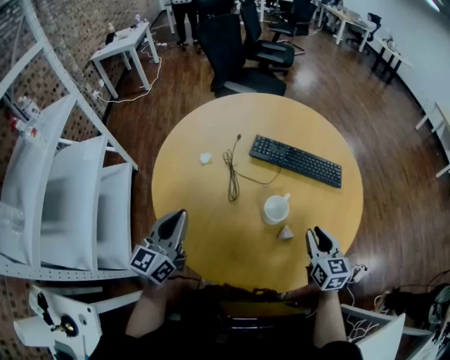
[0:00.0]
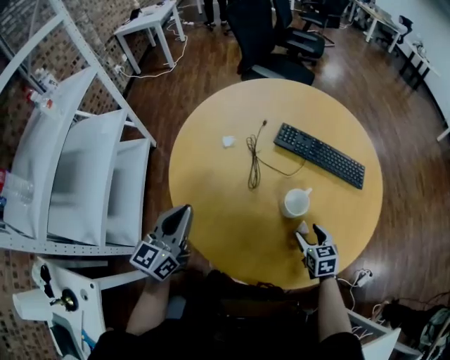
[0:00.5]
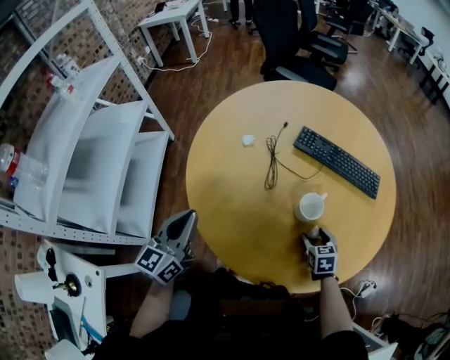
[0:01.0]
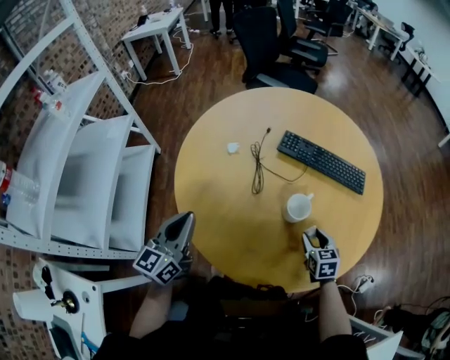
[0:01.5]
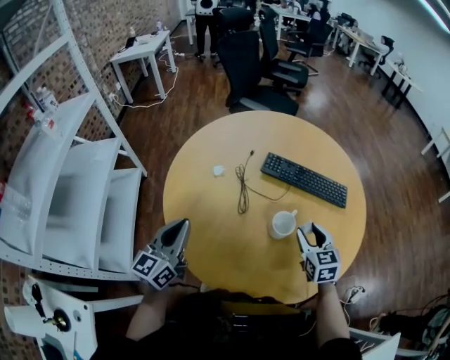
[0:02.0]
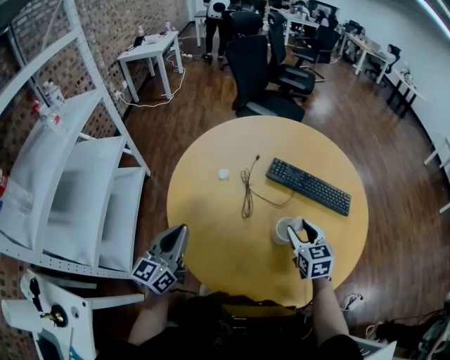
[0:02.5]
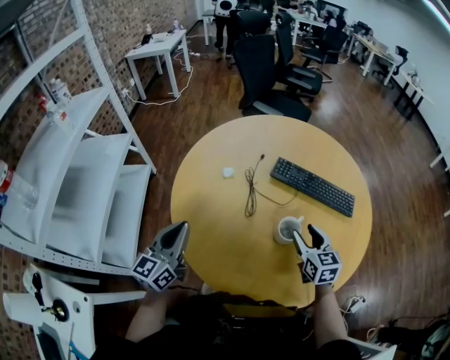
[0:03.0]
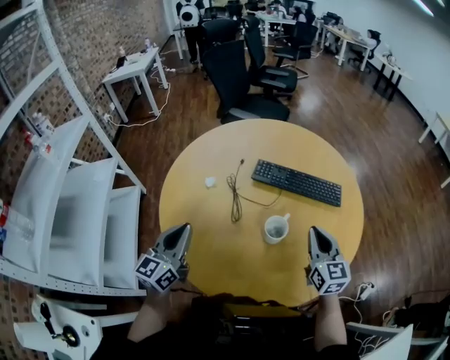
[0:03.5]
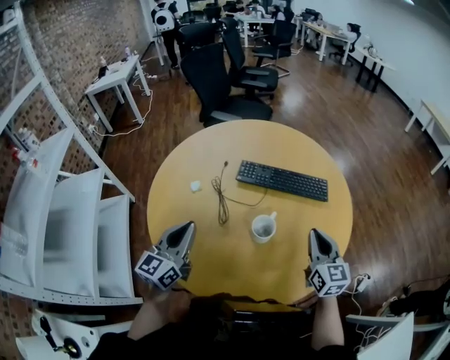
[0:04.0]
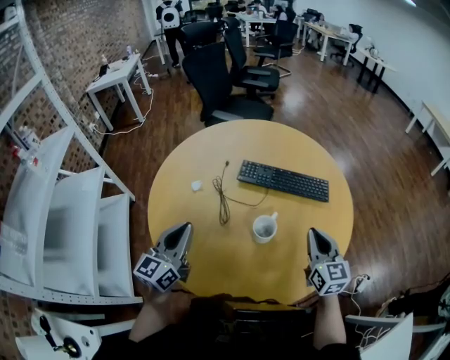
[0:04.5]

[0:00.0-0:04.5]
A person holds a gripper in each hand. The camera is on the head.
0:00.0 to 0:02.0: The right gripper is displaced forward by approximately 5 cm, and reaches about 15 cm downward, then returns.
0:02.0 to 0:04.5: The right gripper shifts approximately 10 cm to the right and upward, and closes its fingers, while the left gripper moves to the right, some 5 cm.

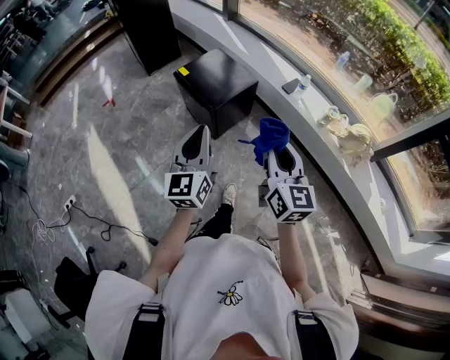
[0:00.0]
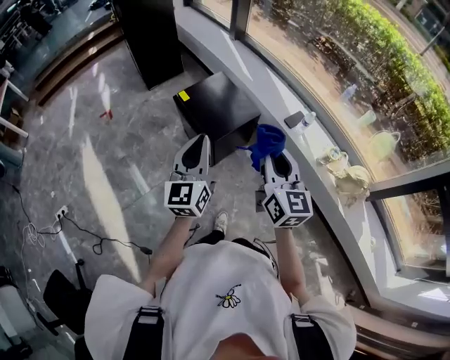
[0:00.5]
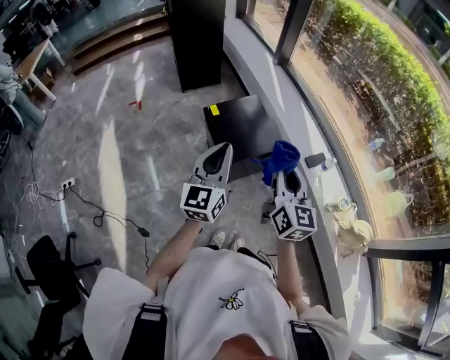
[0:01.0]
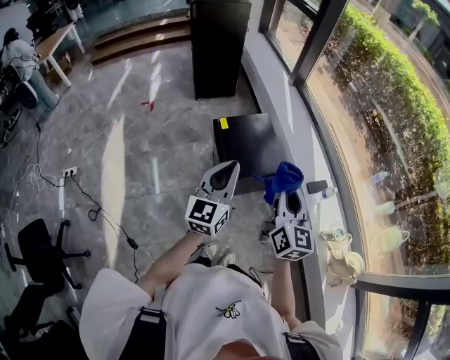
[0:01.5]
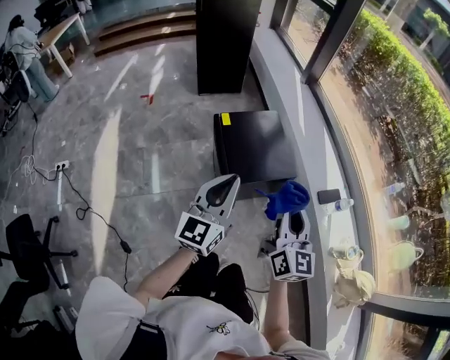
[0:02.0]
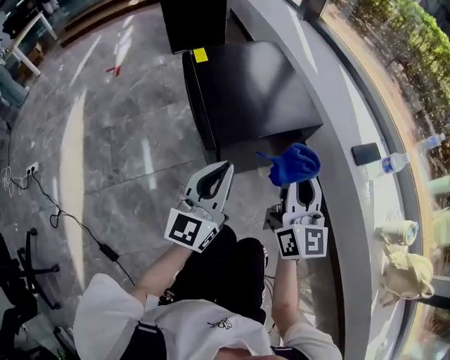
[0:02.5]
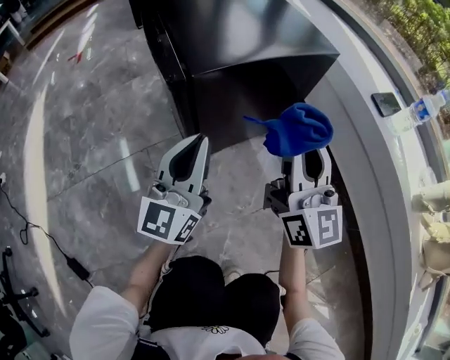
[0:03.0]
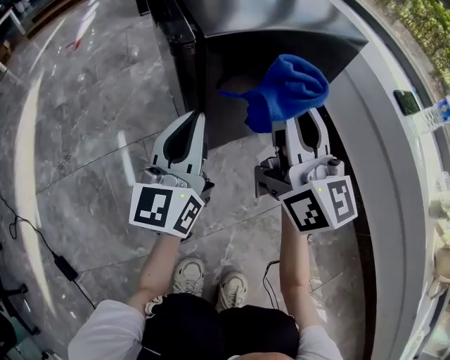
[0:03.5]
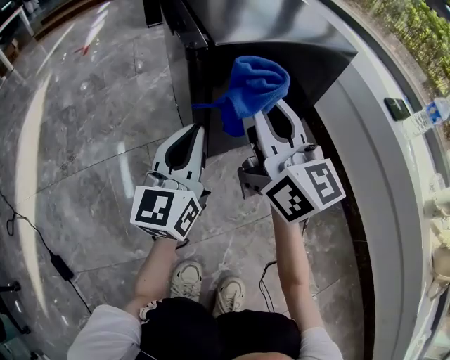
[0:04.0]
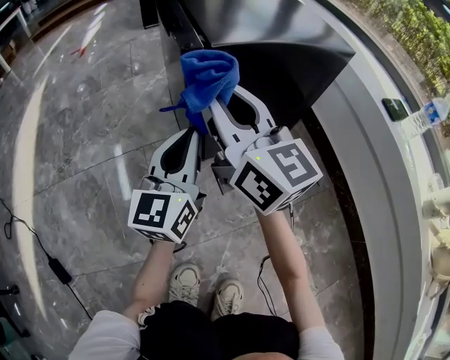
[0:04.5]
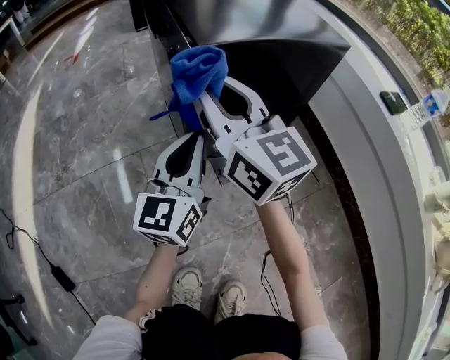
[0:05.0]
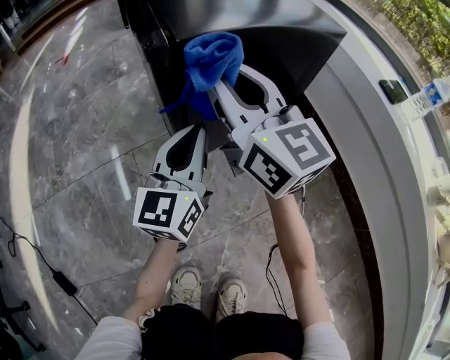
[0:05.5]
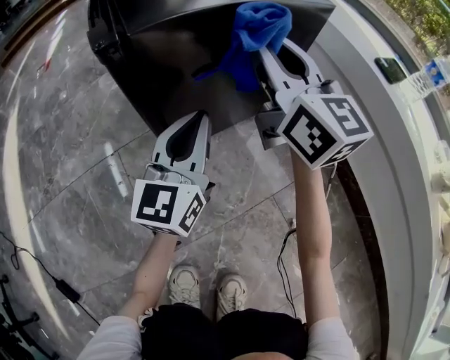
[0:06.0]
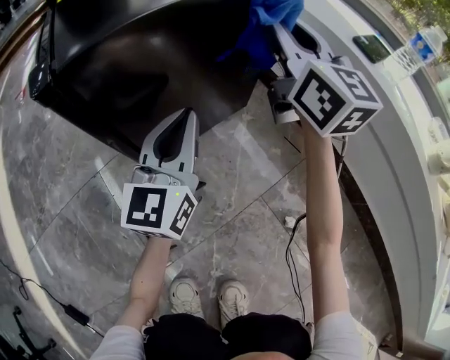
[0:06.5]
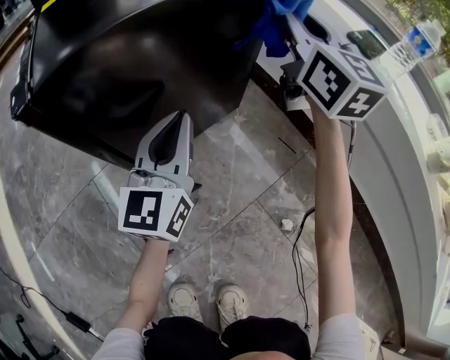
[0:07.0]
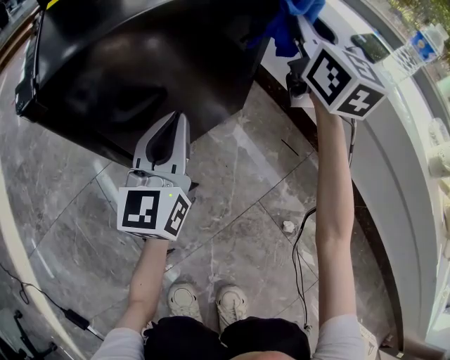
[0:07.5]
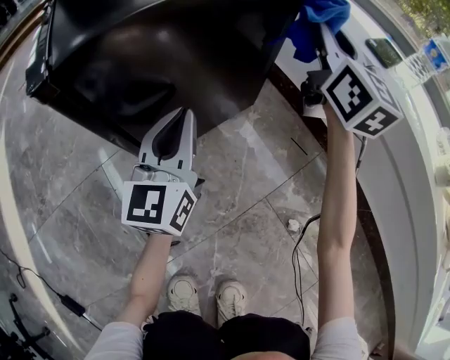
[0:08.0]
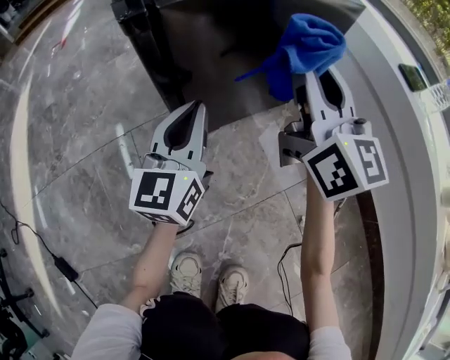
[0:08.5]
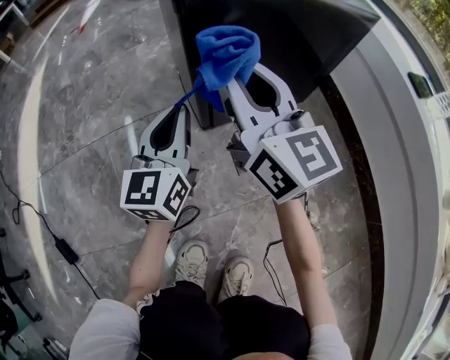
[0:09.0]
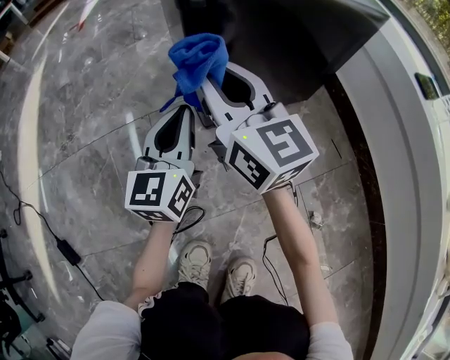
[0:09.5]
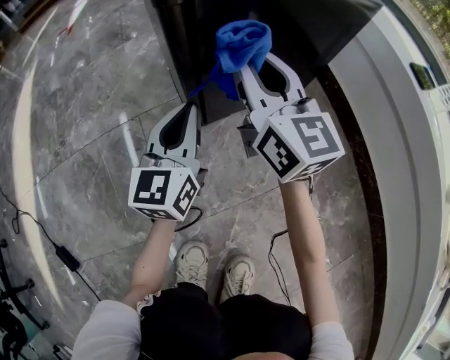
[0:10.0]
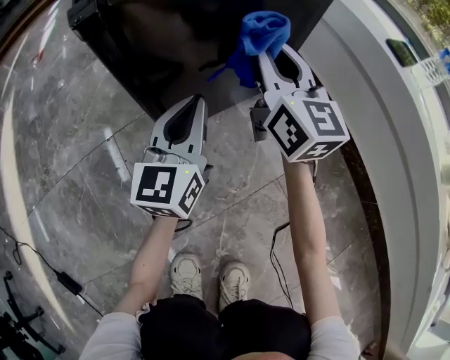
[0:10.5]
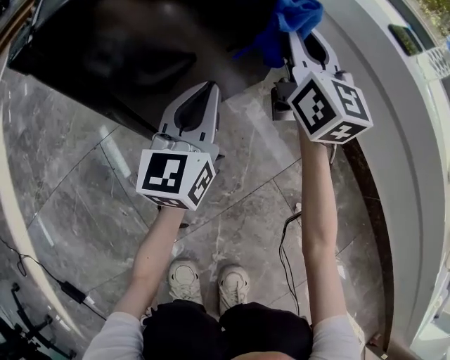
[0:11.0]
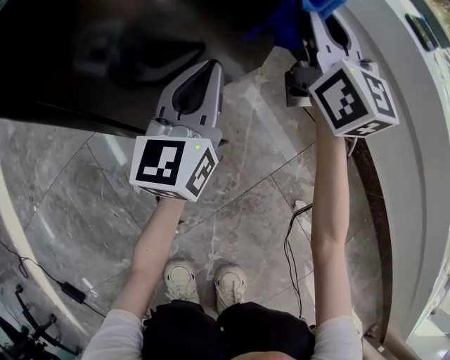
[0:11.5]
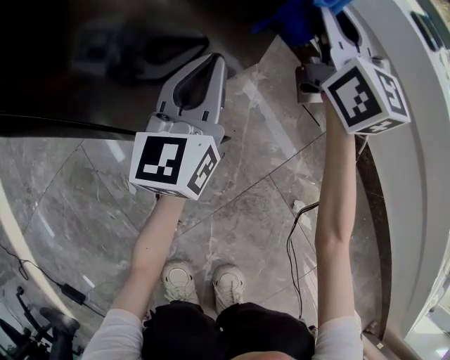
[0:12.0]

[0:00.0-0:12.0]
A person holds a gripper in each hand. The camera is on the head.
0:00.0 to 0:02.0: The left gripper is displaced forward and downward by roughly 25 cm. Meanwhile the right gripper goes about 30 cm forward.
0:02.0 to 0:04.0: Both grippers move downward, some 50 cm. The right gripper changes its angle by about 20 degrees.
0:04.0 to 0:06.0: The right gripper moves to the right and forward, approximately 15 cm. Meanwhile the left gripper is displaced to the right by roughly 10 cm.
0:06.0 to 0:08.0: The left gripper changes place by about 5 cm. The right gripper shifts roughly 20 cm to the right and forward, and swivels about 20 degrees.
0:08.0 to 0:10.0: The left gripper changes place by approximately 15 cm. Meanwhile the right gripper changes place by some 30 cm, and turns by roughly 30 degrees.
0:10.0 to 0:12.0: The grippers both shift to the right and forward by roughly 25 cm. The right gripper changes its angle by roughly 20 degrees.

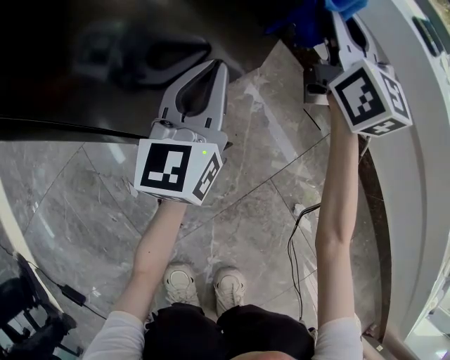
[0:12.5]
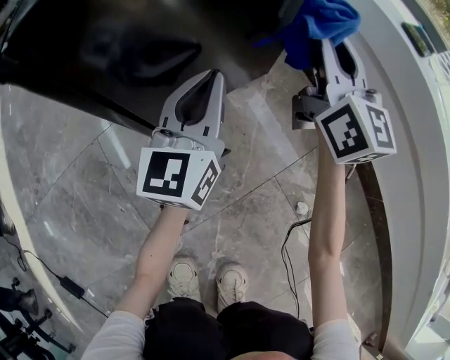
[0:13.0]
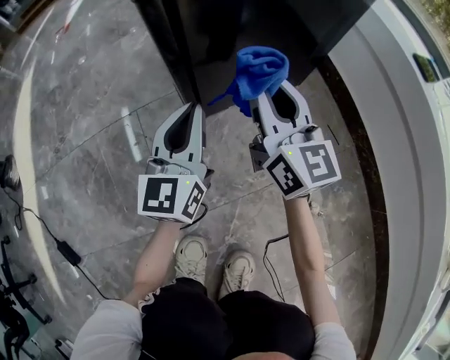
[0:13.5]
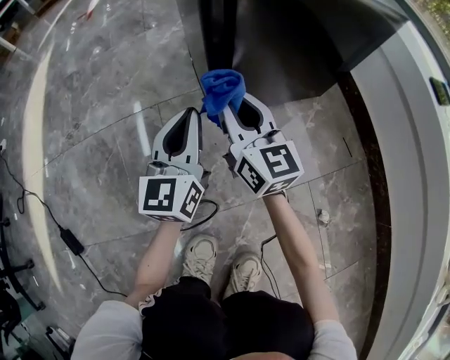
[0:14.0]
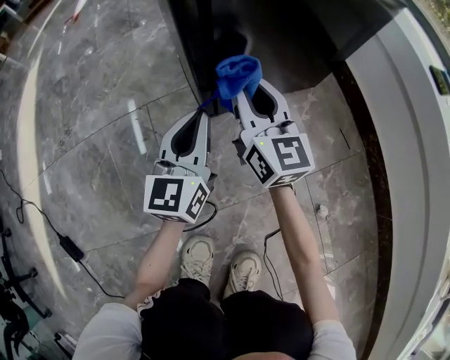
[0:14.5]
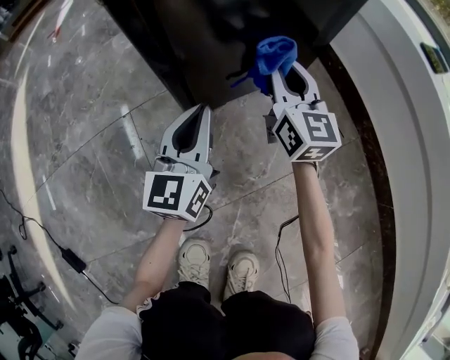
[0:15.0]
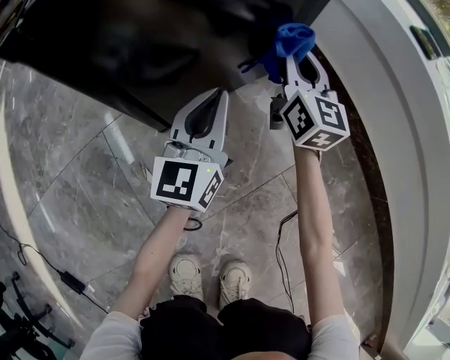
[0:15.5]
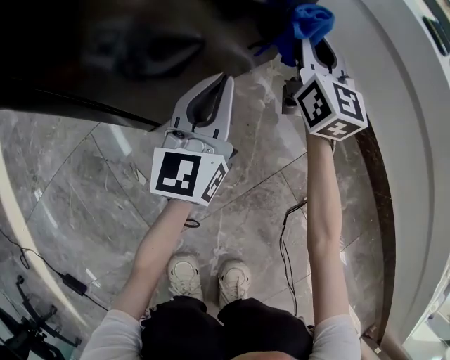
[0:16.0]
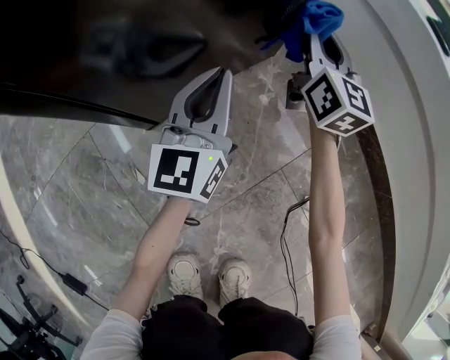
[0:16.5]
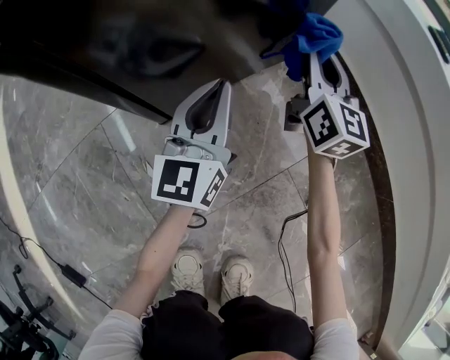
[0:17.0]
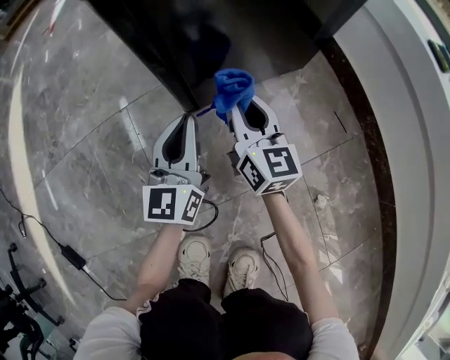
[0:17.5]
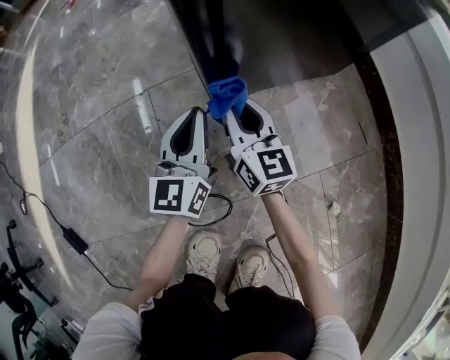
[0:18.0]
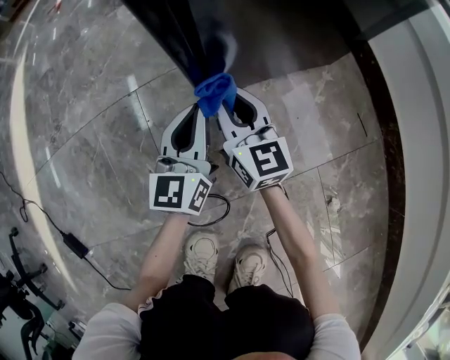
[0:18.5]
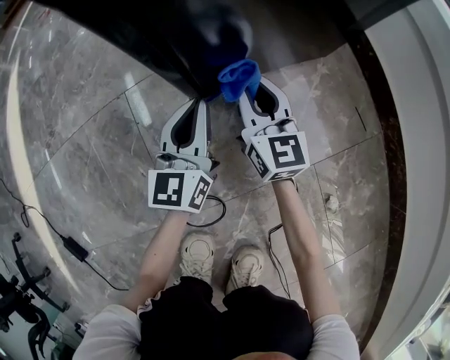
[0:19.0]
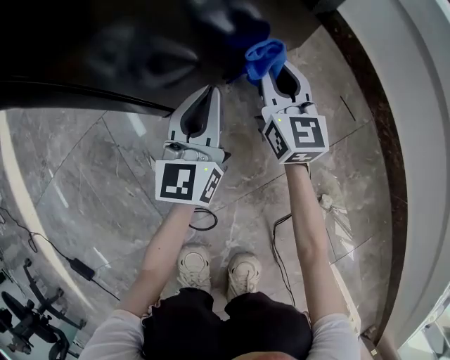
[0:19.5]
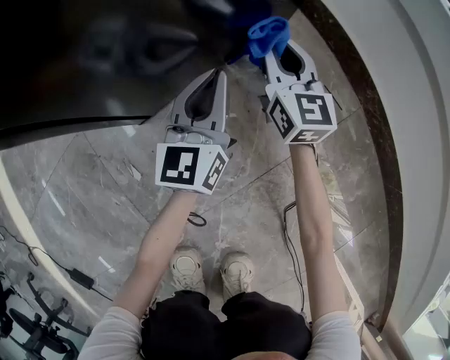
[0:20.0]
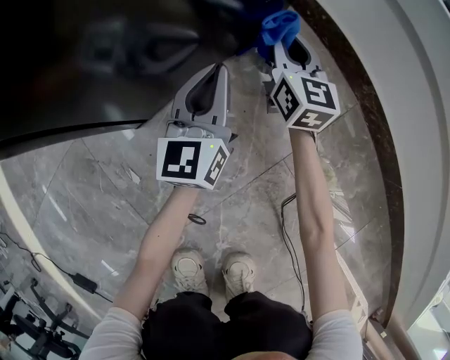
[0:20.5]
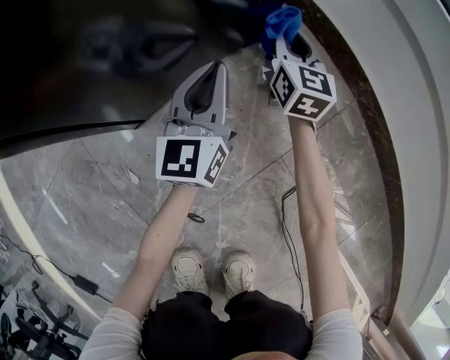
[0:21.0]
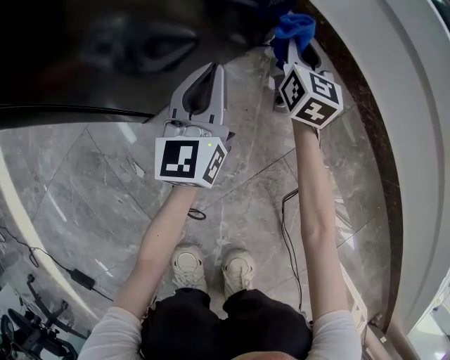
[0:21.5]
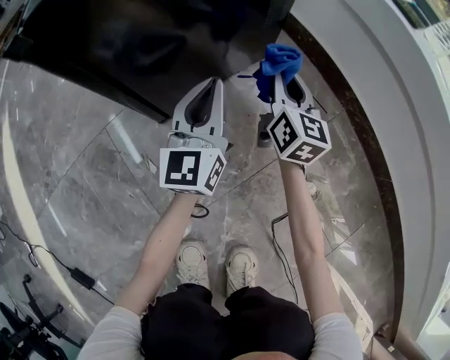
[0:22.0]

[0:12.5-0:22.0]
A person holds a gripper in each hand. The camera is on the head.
0:12.5 to 0:14.5: The right gripper changes place by about 35 cm, and swivels about 30 degrees. The left gripper moves some 25 cm.
0:14.5 to 0:16.5: The right gripper is displaced to the right and forward by some 30 cm, and swivels approximately 30 degrees, while the left gripper is displaced to the right and forward by roughly 20 cm.
0:16.5 to 0:18.0: The left gripper changes place by some 25 cm, and changes its angle by some 20 degrees. The right gripper shifts by about 35 cm, and swivels about 30 degrees.
0:18.0 to 0:20.0: The two grippers go approximately 25 cm to the right and forward. The right gripper turns by some 30 degrees.
0:20.0 to 0:22.0: The left gripper is displaced upward by about 10 cm. Meanwhile the right gripper moves backward and upward, approximately 10 cm.
